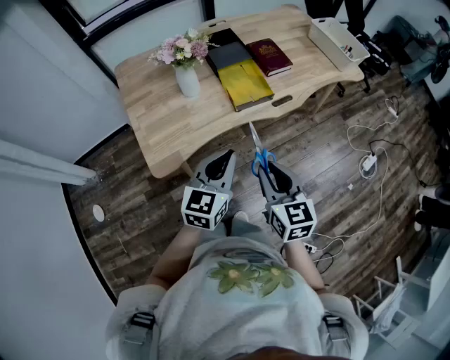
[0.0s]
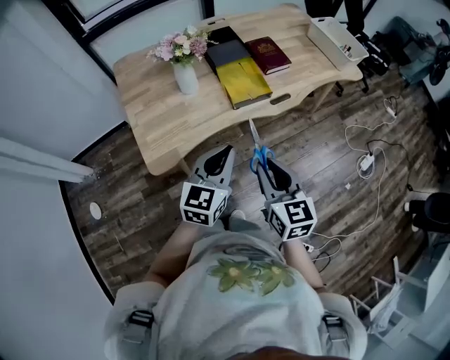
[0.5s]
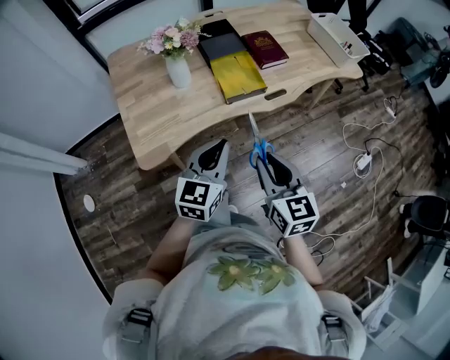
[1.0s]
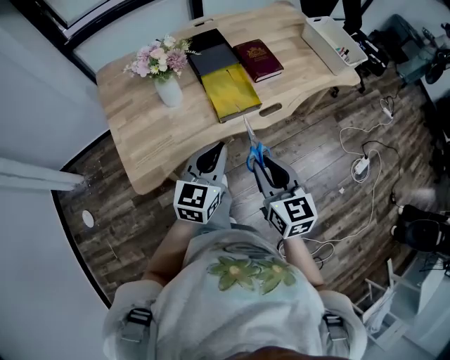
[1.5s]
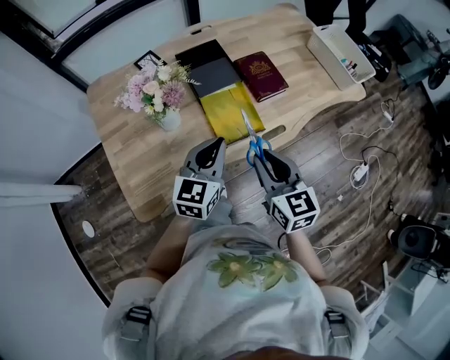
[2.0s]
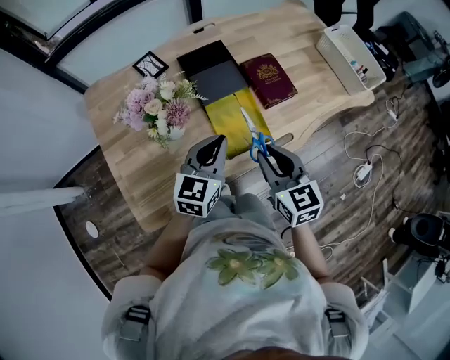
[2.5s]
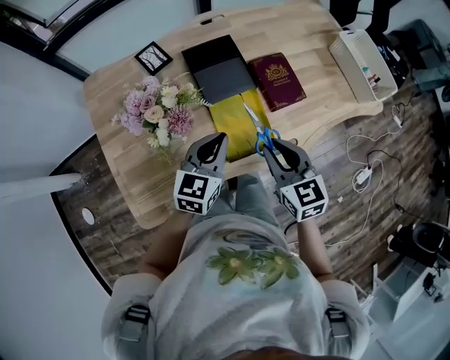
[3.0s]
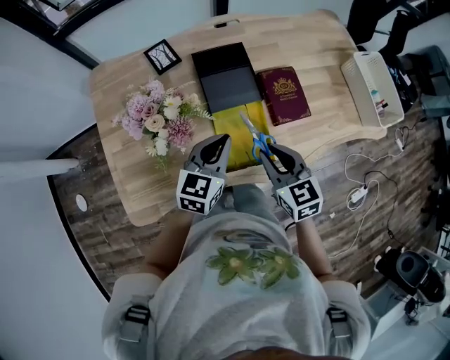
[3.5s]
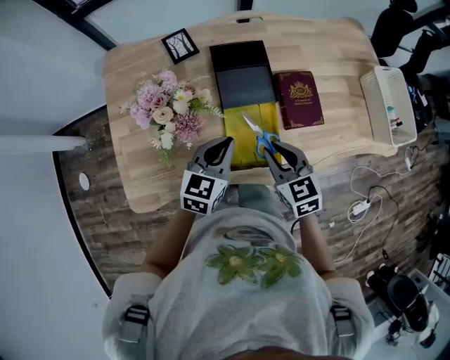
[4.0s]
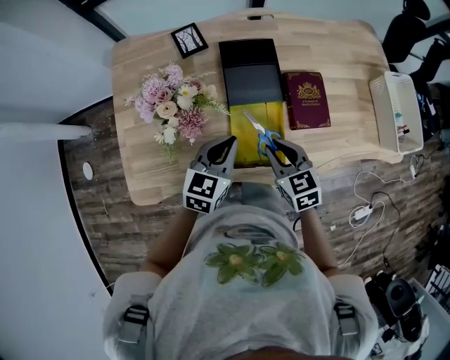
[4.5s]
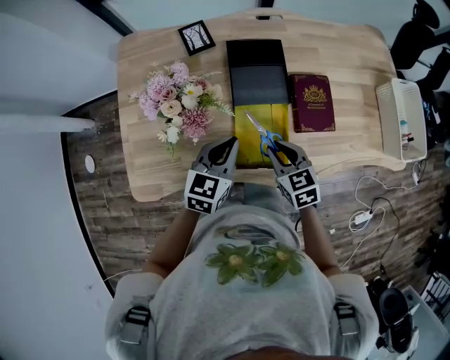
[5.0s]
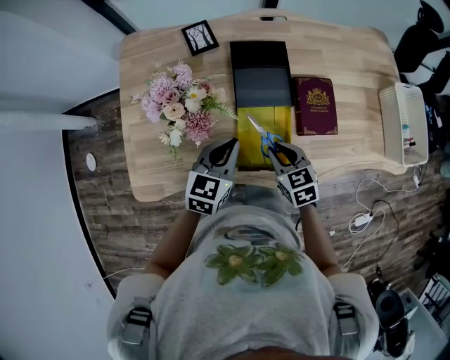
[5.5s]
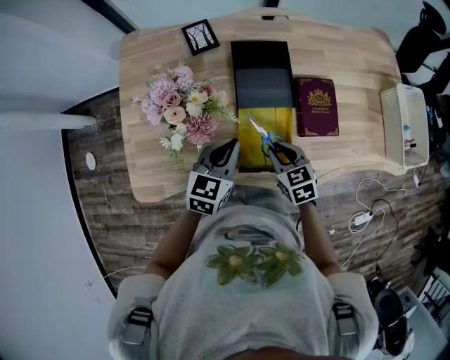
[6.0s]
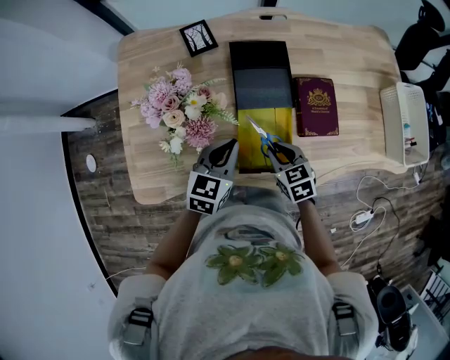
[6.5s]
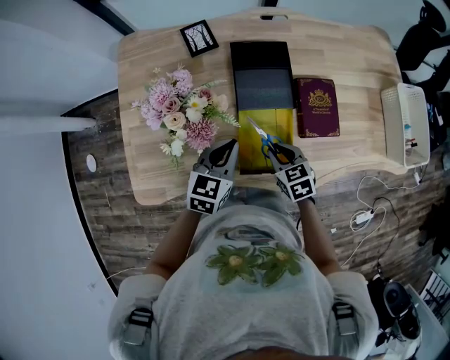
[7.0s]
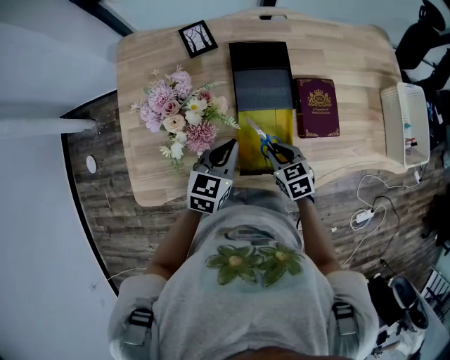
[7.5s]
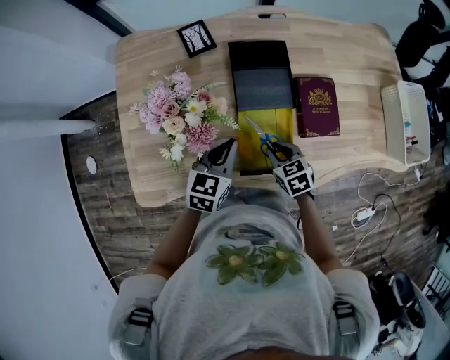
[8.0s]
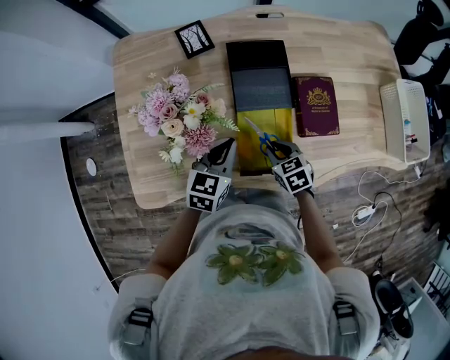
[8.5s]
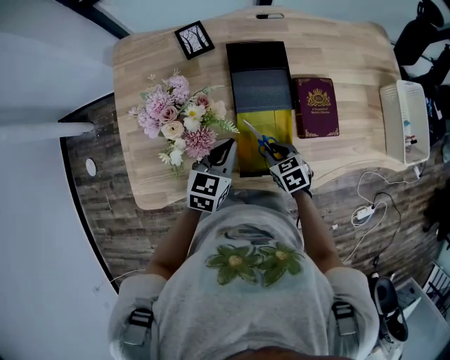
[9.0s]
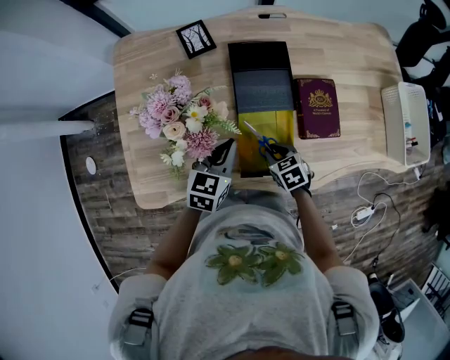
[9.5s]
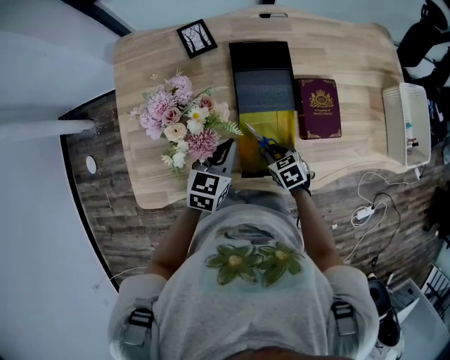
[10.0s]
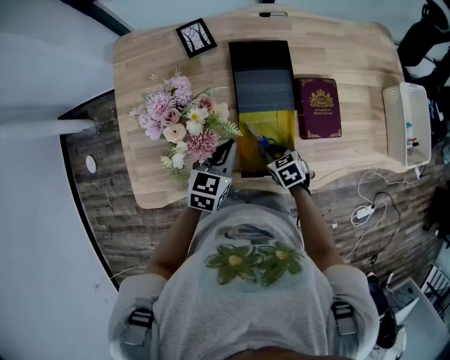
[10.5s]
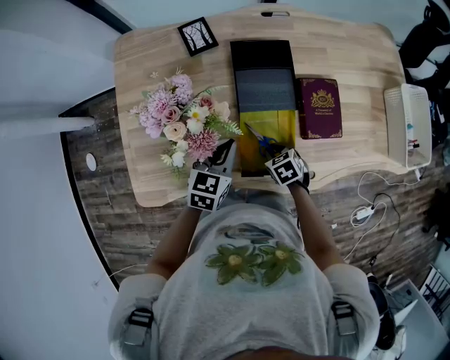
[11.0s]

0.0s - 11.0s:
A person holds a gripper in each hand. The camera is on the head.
0.0s - 2.0s: The grippers both shift forward by some 25 cm.
2.0s - 3.5s: The grippers both shift forward by approximately 15 cm. The right gripper rotates some 20 degrees.
3.5s - 5.5s: The right gripper heads downward, covering some 10 cm.
5.5s - 7.5s: The right gripper moves downward, approximately 5 cm.
7.5s - 9.0s: The grippers move only a little.
9.0s - 11.0s: The grippers make only small movements.

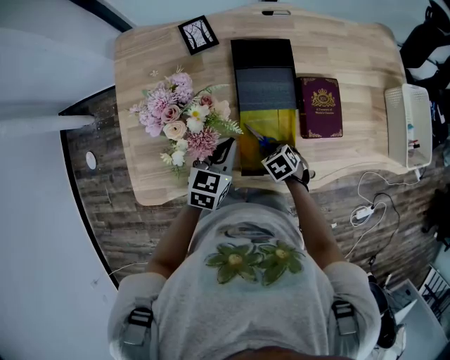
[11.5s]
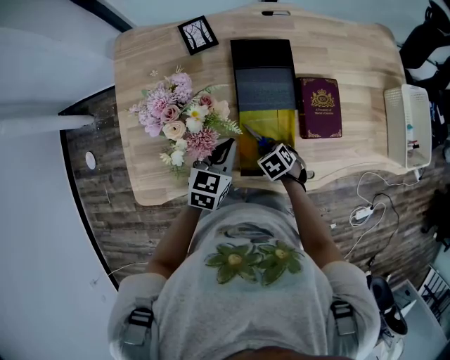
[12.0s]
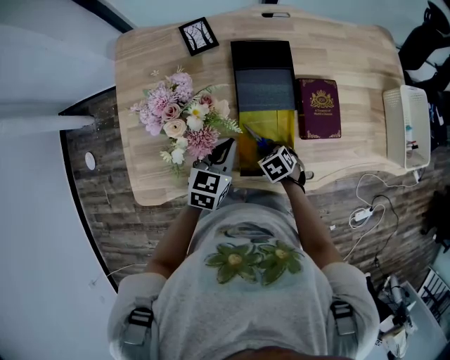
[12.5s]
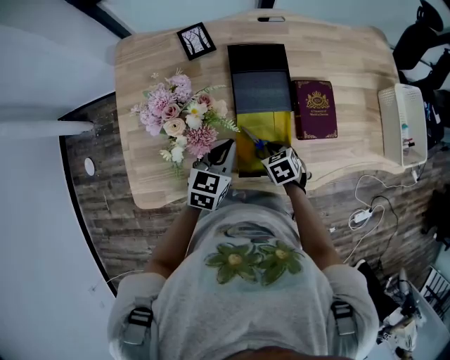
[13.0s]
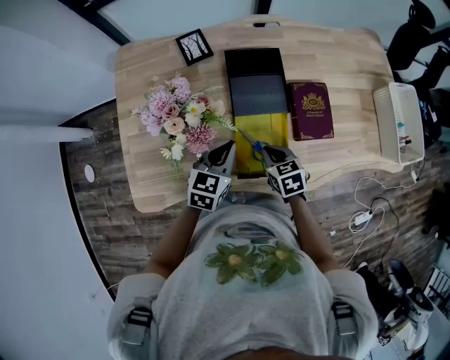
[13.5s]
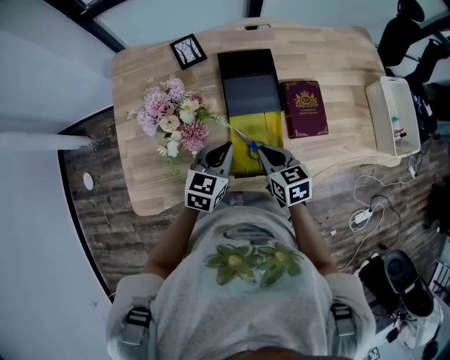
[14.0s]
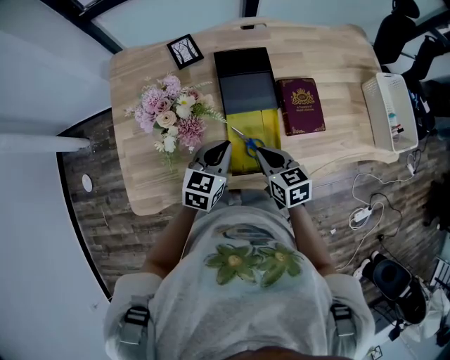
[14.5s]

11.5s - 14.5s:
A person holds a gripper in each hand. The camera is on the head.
11.5s - 13.0s: The grippers move only a little.
13.0s - 14.5s: The right gripper is displaced upward by approximately 15 cm, and rotates some 30 degrees.

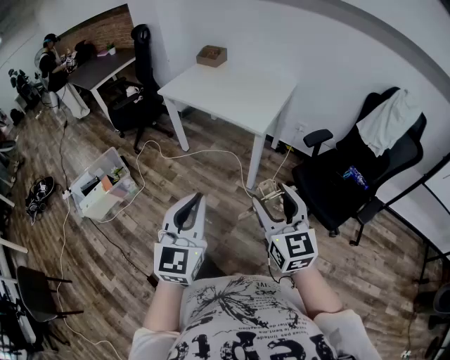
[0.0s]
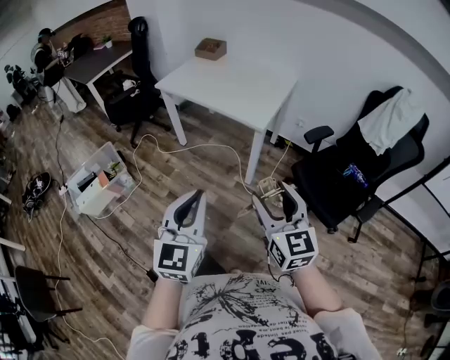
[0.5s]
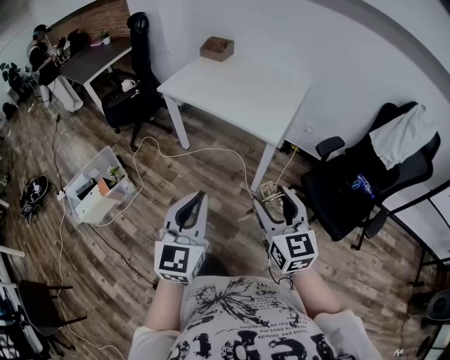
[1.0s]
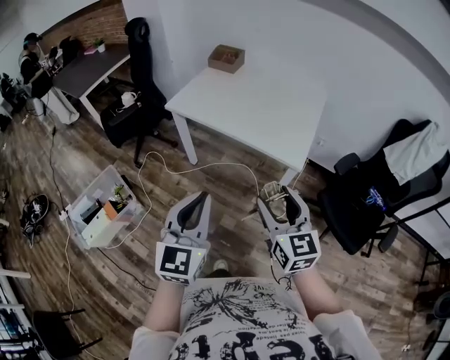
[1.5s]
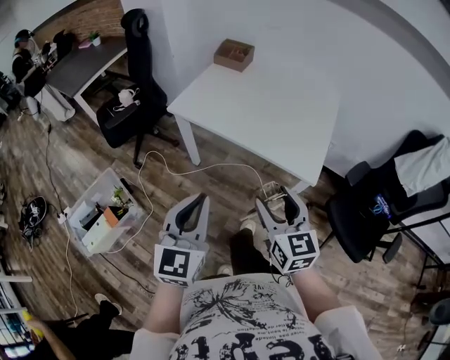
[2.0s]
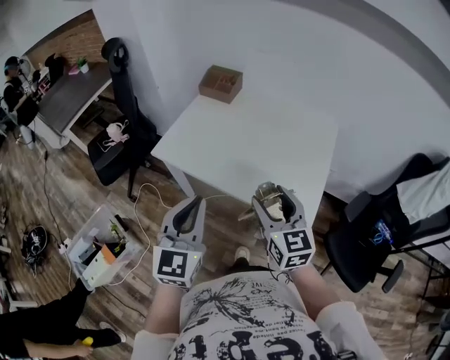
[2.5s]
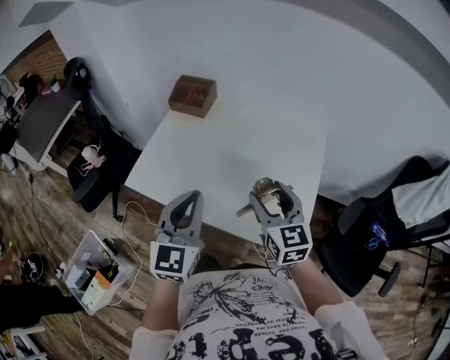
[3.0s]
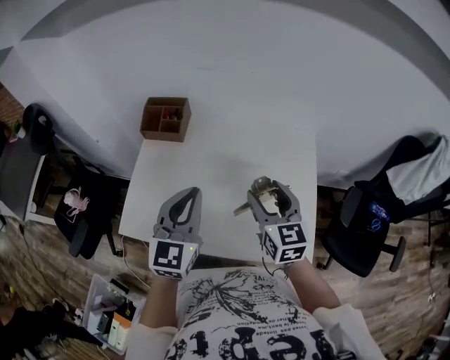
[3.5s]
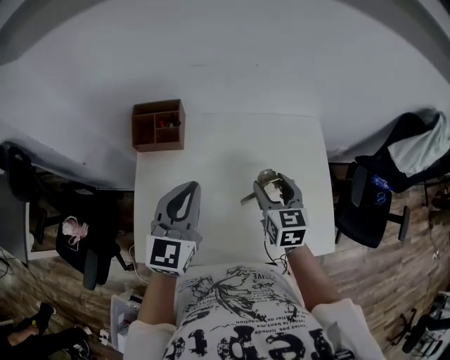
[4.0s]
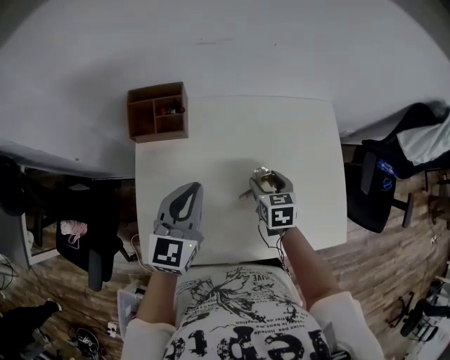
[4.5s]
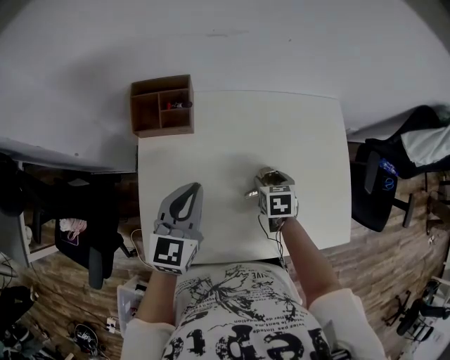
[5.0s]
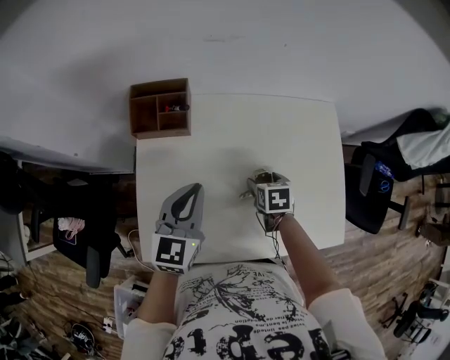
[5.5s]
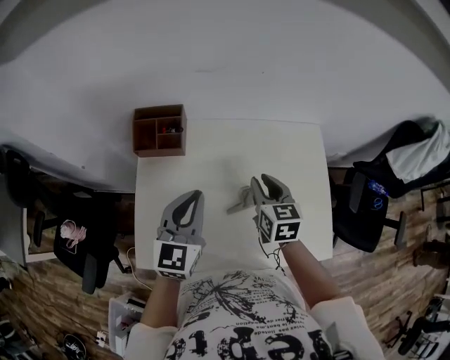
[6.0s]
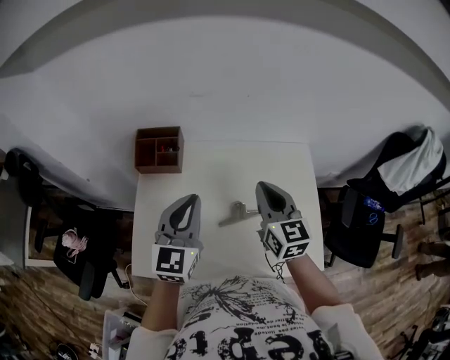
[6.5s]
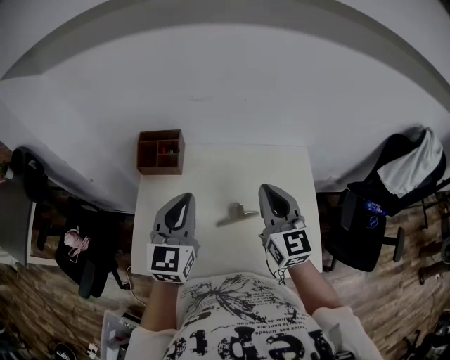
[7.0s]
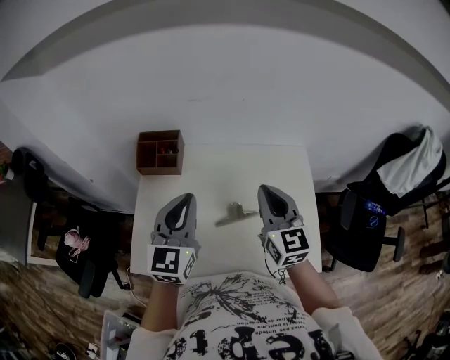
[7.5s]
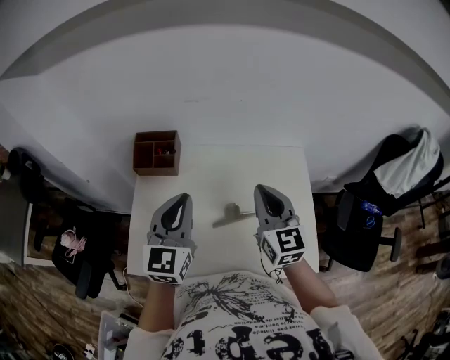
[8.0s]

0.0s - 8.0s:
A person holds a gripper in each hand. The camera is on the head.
0.0s - 2.0s: The pair of grippers is taken forward and to the left, some 40 cm.
2.0s - 4.0s: The pair of grippers is taken approximately 60 cm. The left gripper turns by about 30 degrees. The right gripper swivels roughly 40 degrees.
4.0s - 6.0s: The right gripper travels downward and back again, some 20 cm each way, and closes, while the left gripper goes downward and returns, approximately 10 cm each way.
6.0s - 8.0s: The right gripper shifts roughly 15 cm upward, and rotates approximately 30 degrees. The left gripper travels upward by some 10 cm.

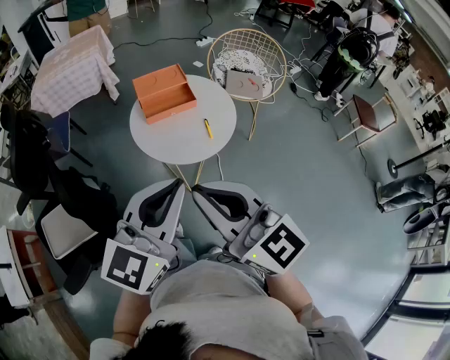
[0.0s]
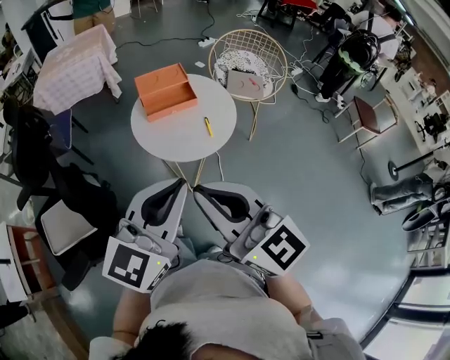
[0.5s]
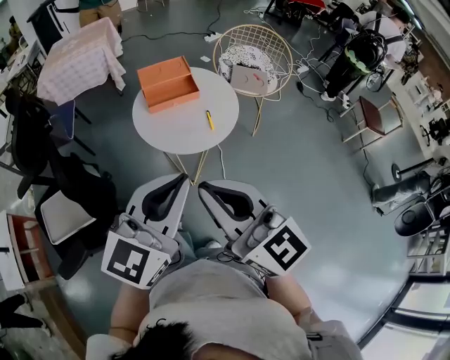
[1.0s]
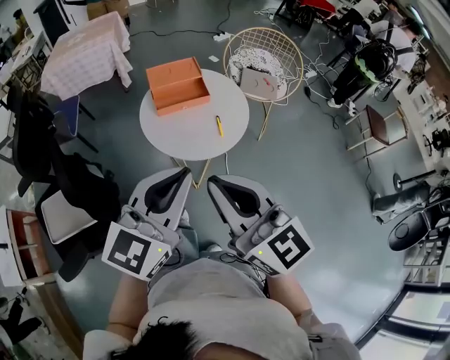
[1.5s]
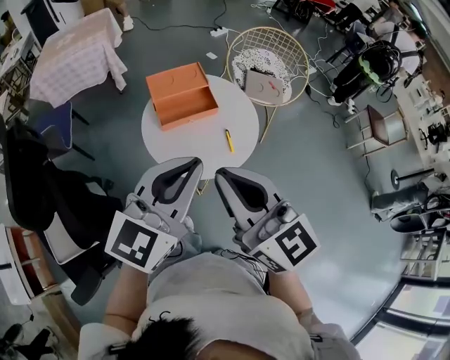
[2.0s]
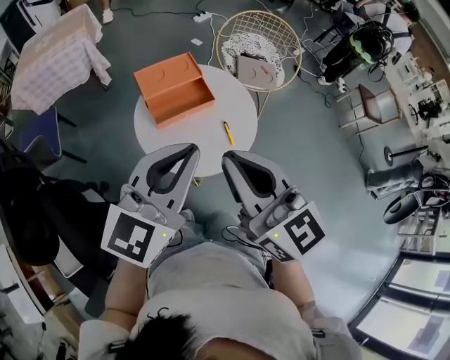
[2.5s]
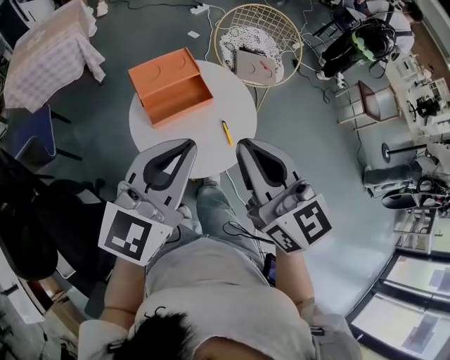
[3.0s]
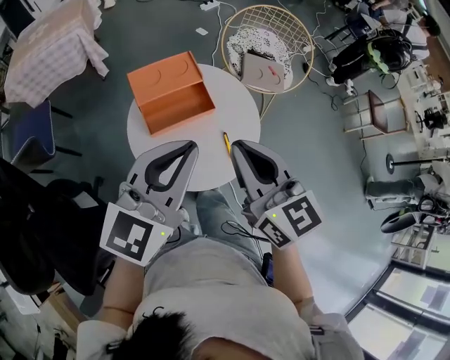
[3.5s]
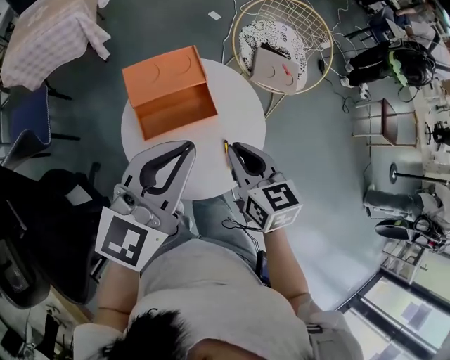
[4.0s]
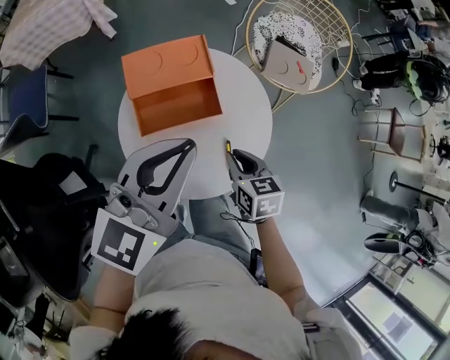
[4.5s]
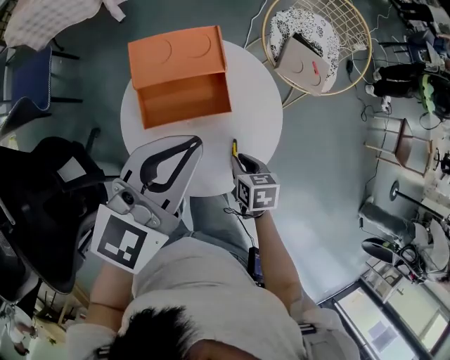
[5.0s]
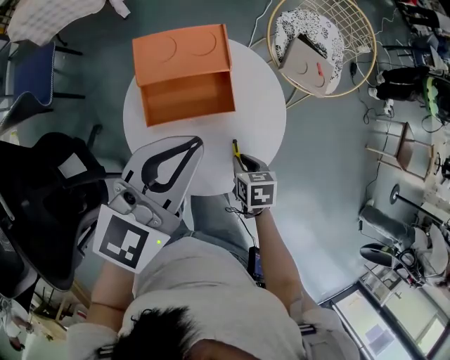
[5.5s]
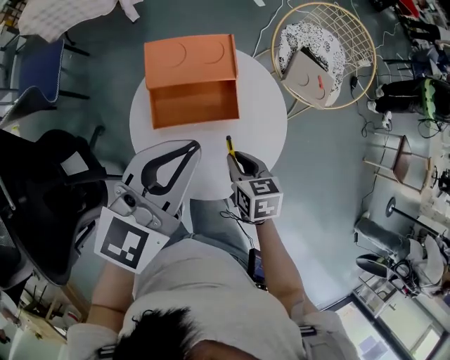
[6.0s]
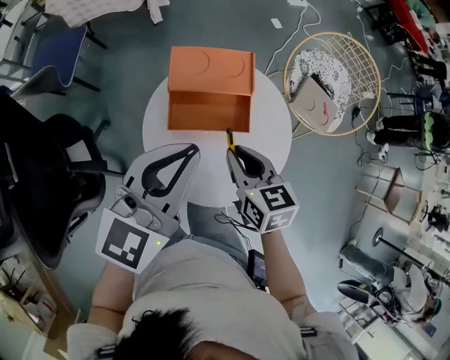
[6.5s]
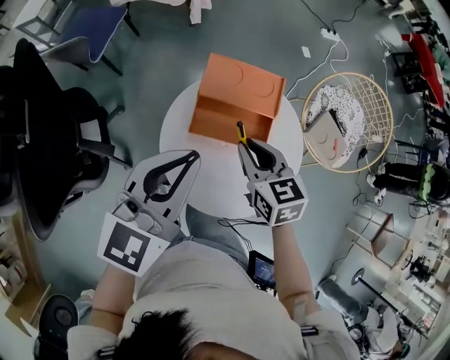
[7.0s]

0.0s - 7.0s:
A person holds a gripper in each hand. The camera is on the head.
0.0s - 2.0s: Both grippers travel together forward, about 15 cm.
2.0s - 3.5s: The grippers both shift forward by roughly 15 cm.
3.5s - 5.0s: The left gripper moves forward and downward, some 15 cm. The right gripper shifts some 35 cm downward, and angles its fingers downward, by roughly 50 degrees.
5.0s - 7.0s: The left gripper shifts some 10 cm to the left, and swivels approximately 30 degrees. Meanwhile the right gripper shifts roughly 25 cm upward, to the left and forward, and swivels approximately 40 degrees.
